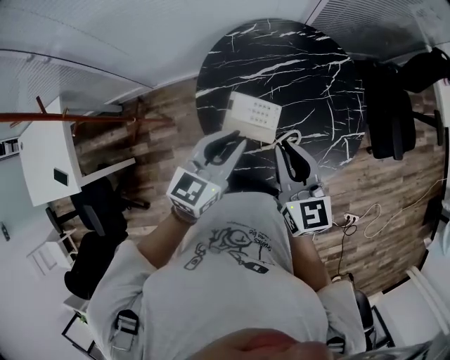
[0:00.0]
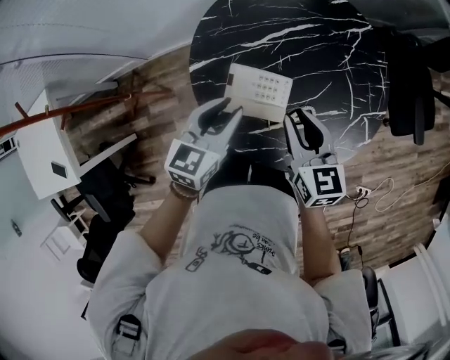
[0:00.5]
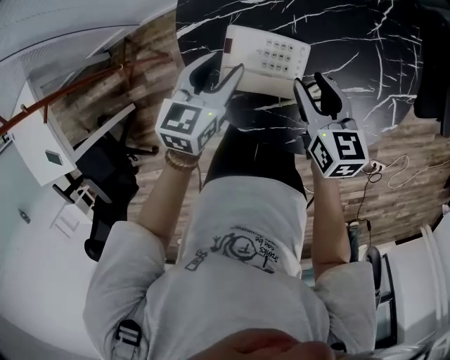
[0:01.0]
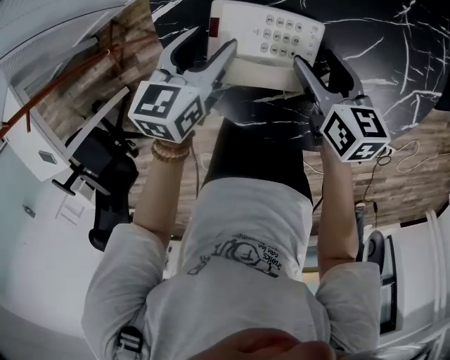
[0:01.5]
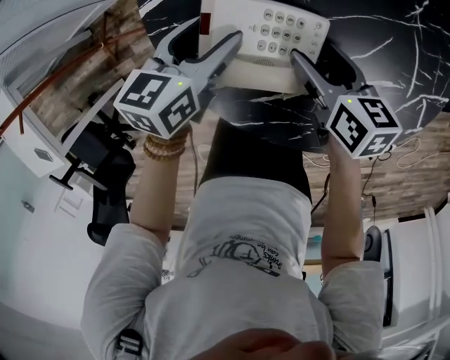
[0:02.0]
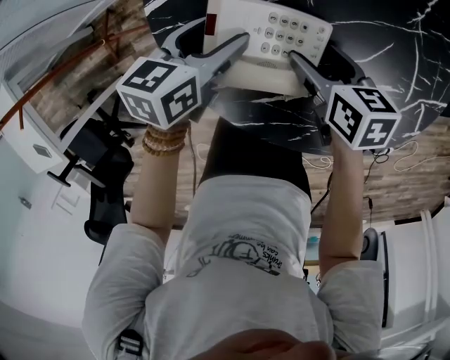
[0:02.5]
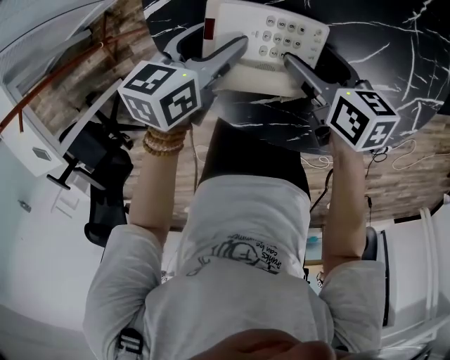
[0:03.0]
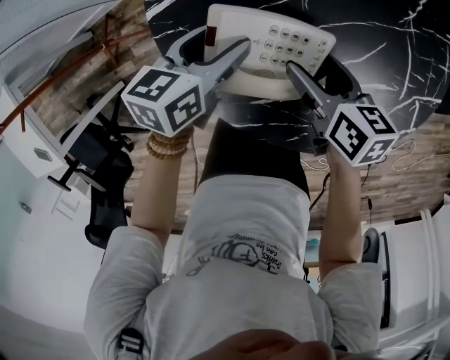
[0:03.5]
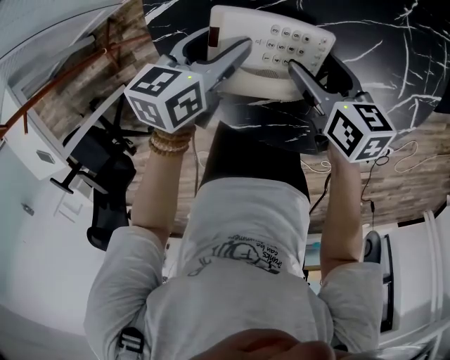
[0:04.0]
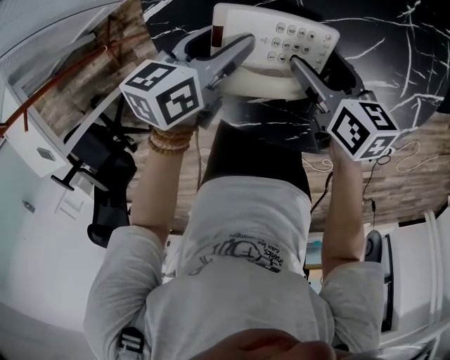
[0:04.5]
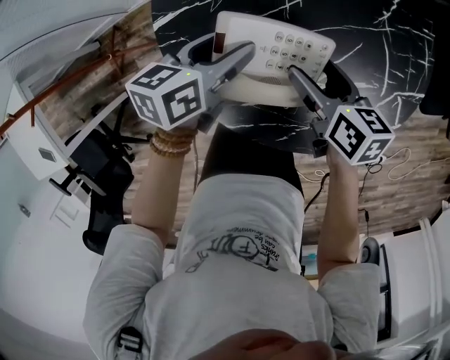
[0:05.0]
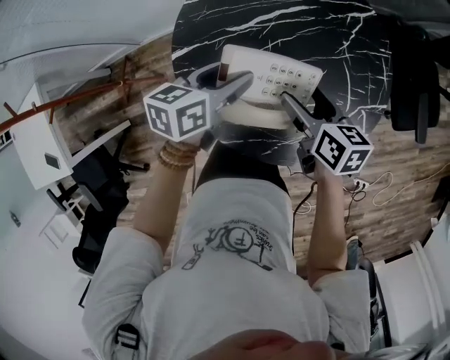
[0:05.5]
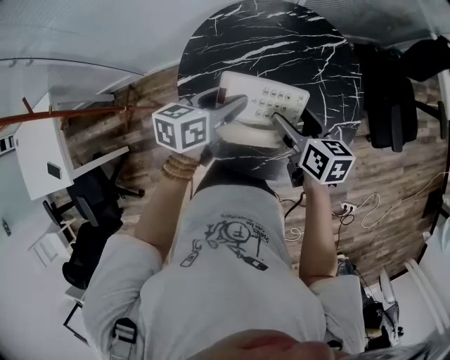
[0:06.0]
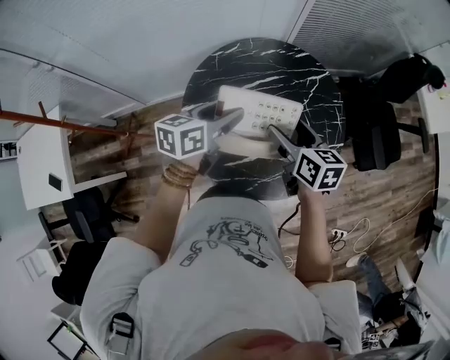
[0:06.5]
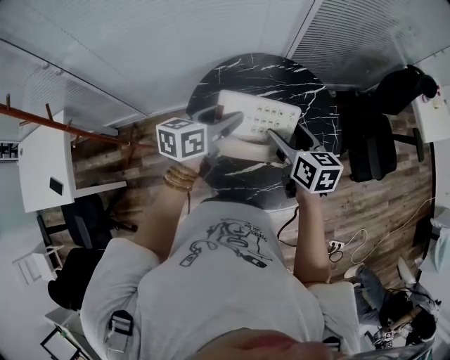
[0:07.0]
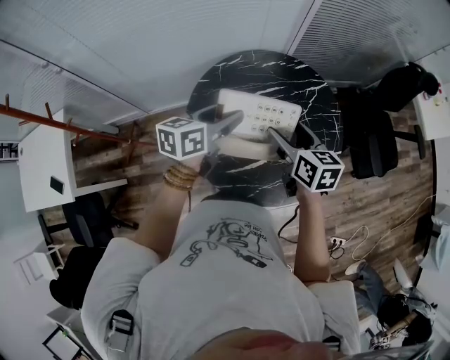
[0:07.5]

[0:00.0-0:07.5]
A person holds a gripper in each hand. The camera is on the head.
0:00.0 to 0:02.0: The two grippers go about 35 cm downward. The left gripper changes its angle by some 30 degrees, and opens up. The right gripper rotates approximately 40 degrees, and opens up.
0:02.0 to 0:04.0: The grippers move only a little.
0:04.0 to 0:05.5: The two grippers go about 20 cm upward.
0:05.5 to 0:07.5: The grippers both shift upward by approximately 20 cm.

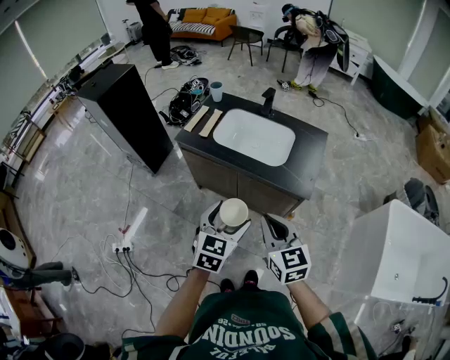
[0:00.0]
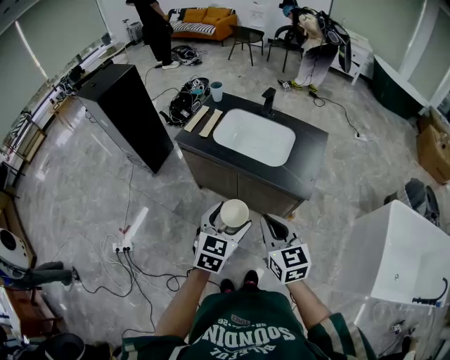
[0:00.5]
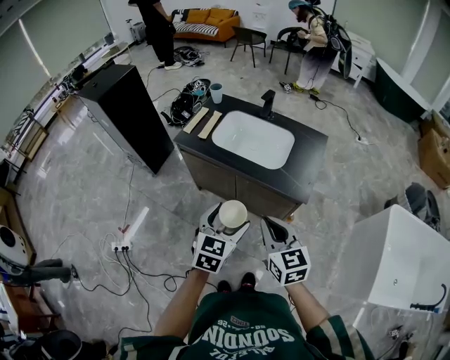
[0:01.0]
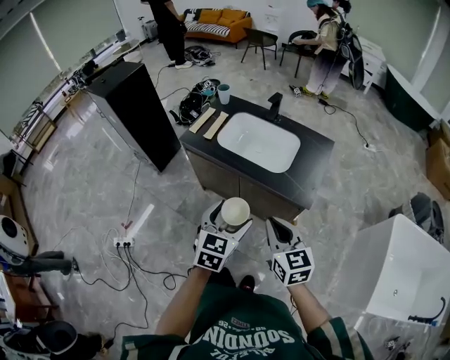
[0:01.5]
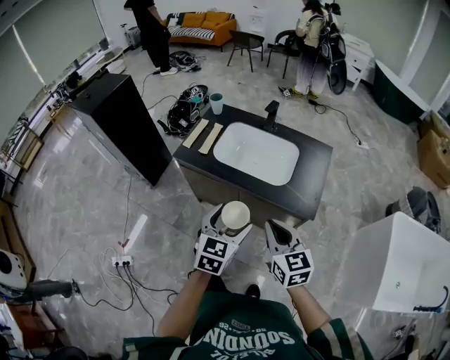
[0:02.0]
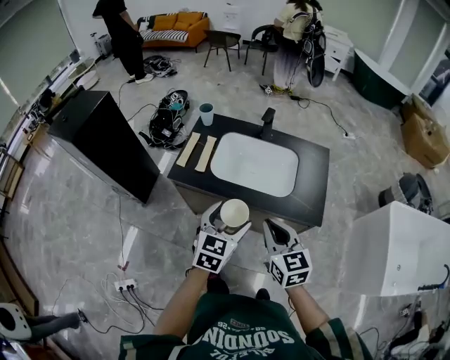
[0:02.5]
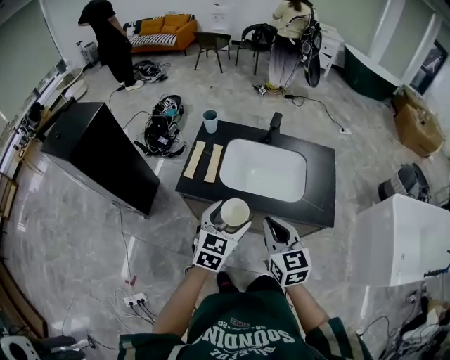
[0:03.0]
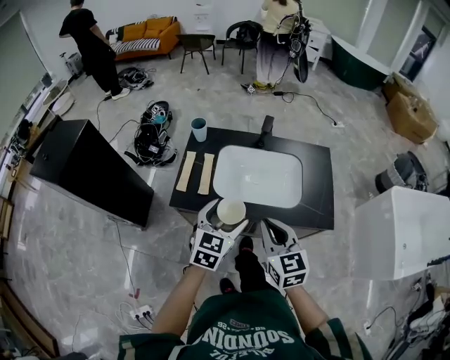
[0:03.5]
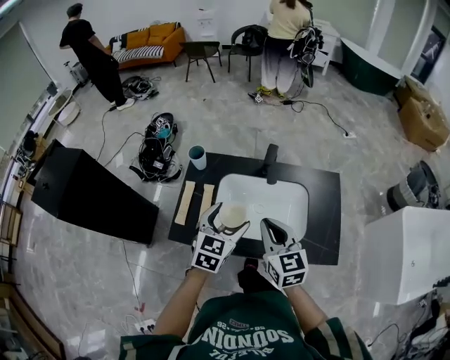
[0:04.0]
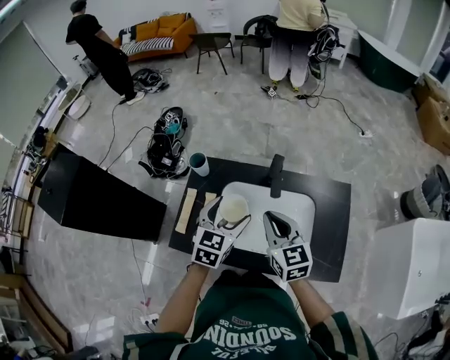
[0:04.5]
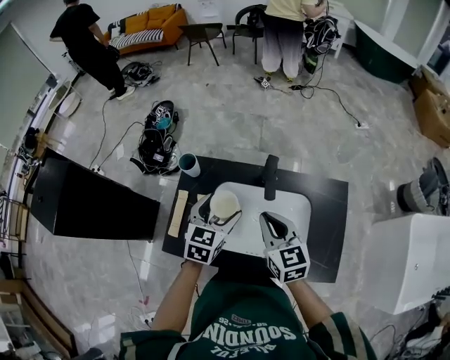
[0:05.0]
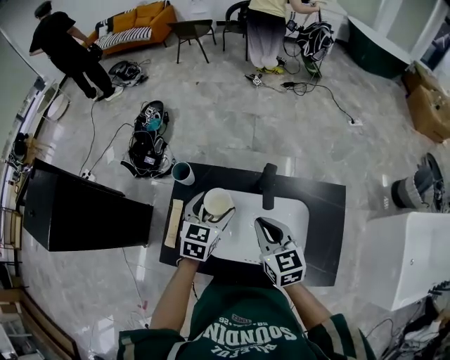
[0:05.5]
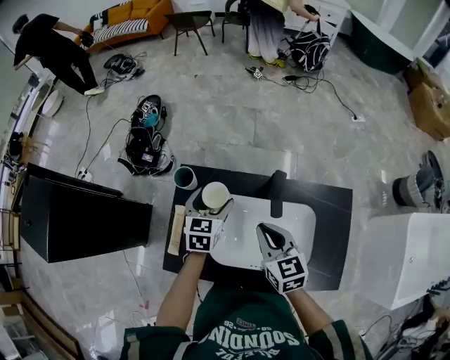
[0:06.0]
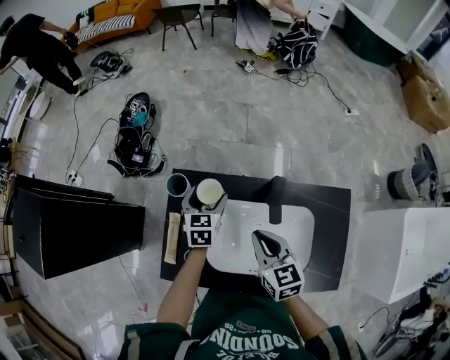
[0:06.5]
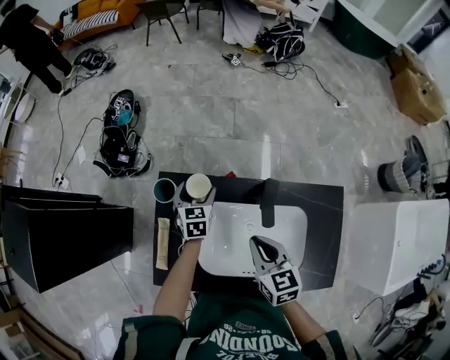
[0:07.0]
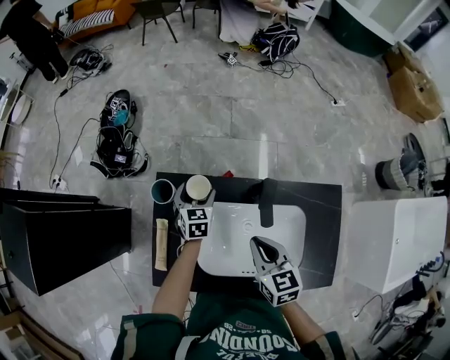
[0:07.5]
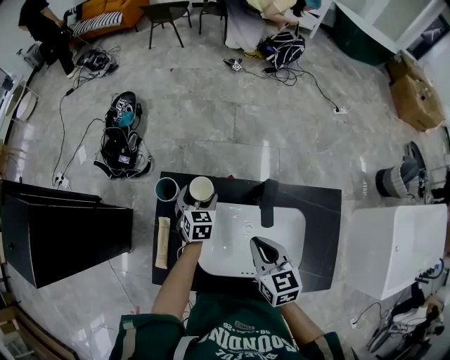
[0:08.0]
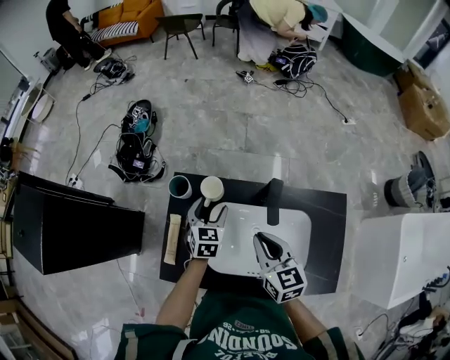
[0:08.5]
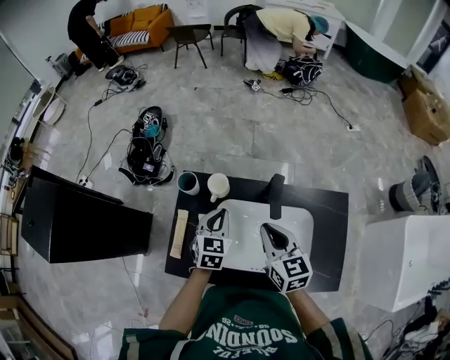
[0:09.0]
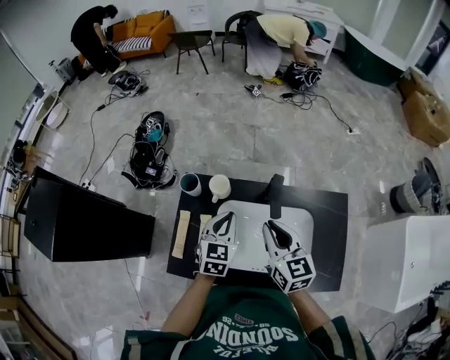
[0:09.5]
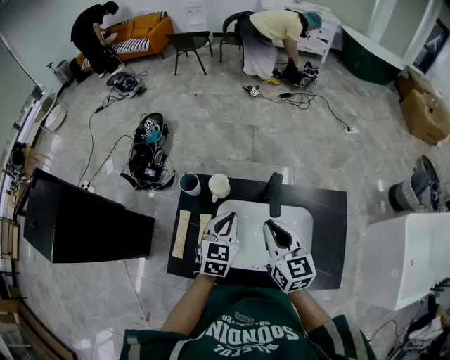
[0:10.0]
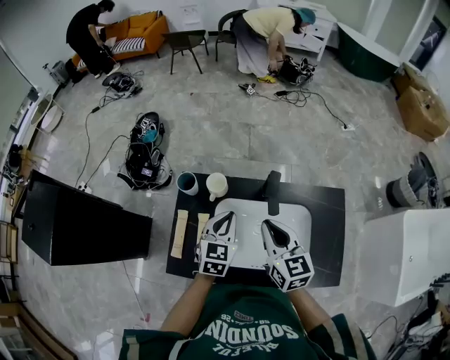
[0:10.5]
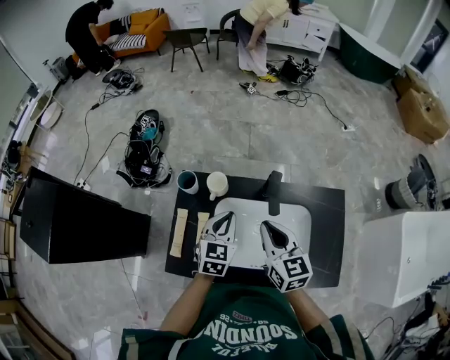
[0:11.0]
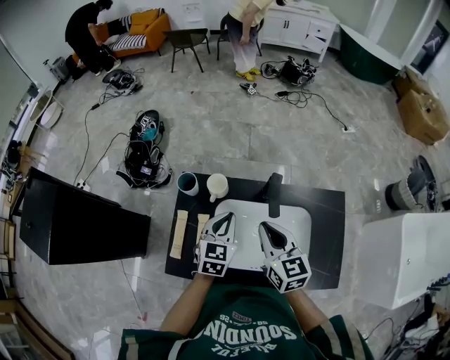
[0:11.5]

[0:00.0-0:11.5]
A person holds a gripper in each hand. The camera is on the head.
0:00.0 to 0:02.0: Both grippers travel together forward, about 10 cm.
0:02.0 to 0:04.0: The left gripper shifts some 35 cm forward. The right gripper moves forward and to the left, about 40 cm.
0:04.0 to 0:06.0: Both grippers move forward, approximately 25 cm.
0:06.0 to 0:07.5: The left gripper shifts some 15 cm downward and forward.
0:07.5 to 0:09.5: The left gripper moves upward and backward, approximately 25 cm, and closes up. The right gripper shifts some 10 cm upward.
0:09.5 to 0:11.5: The grippers stay close to where they were, moving slightly.

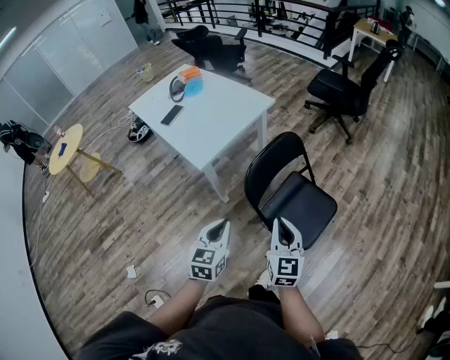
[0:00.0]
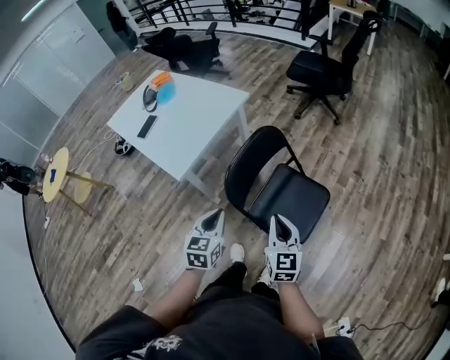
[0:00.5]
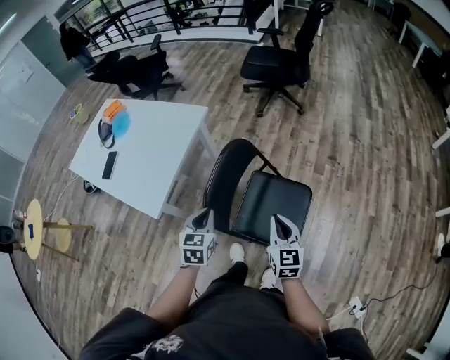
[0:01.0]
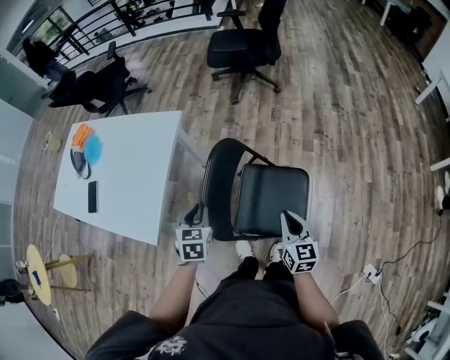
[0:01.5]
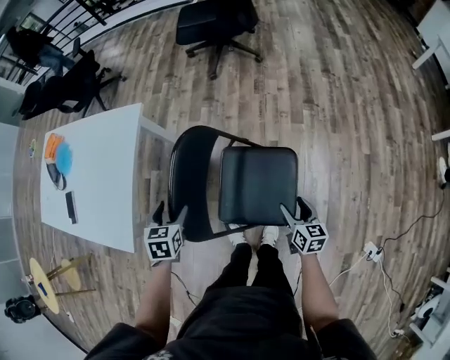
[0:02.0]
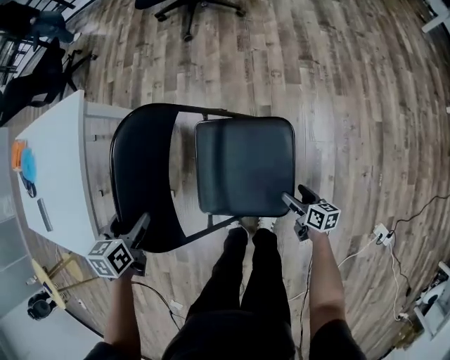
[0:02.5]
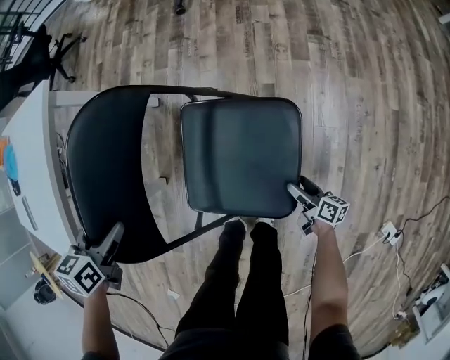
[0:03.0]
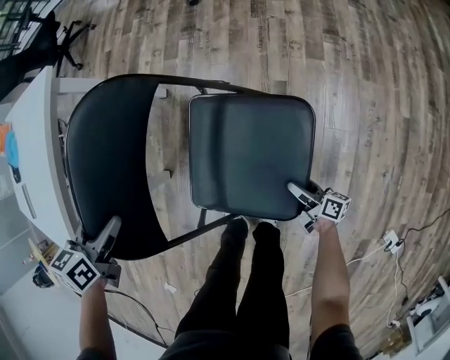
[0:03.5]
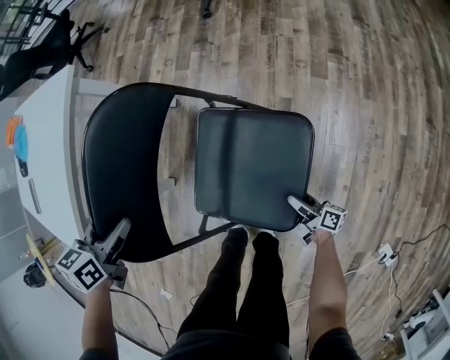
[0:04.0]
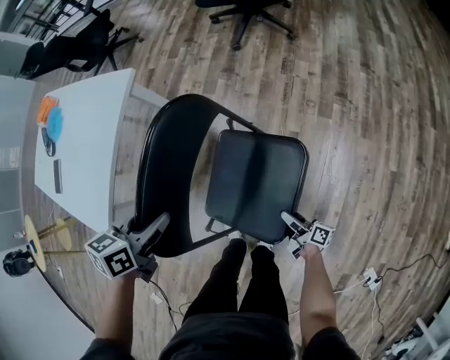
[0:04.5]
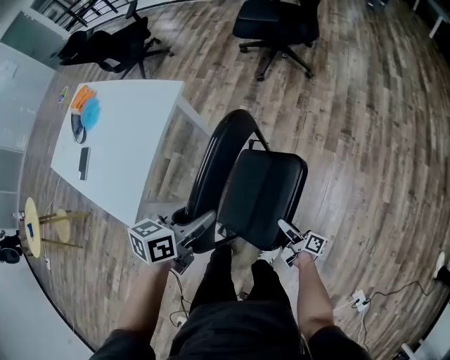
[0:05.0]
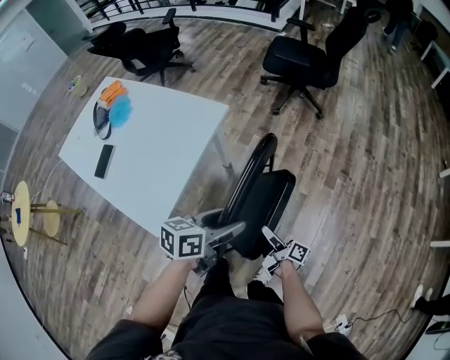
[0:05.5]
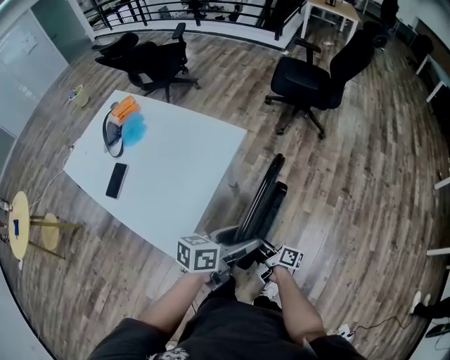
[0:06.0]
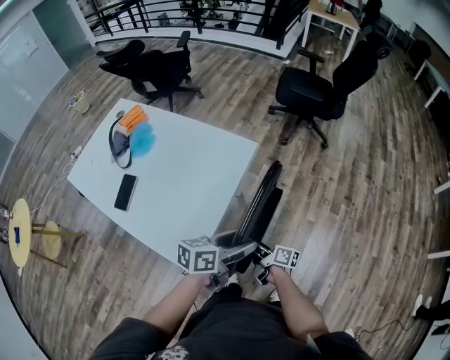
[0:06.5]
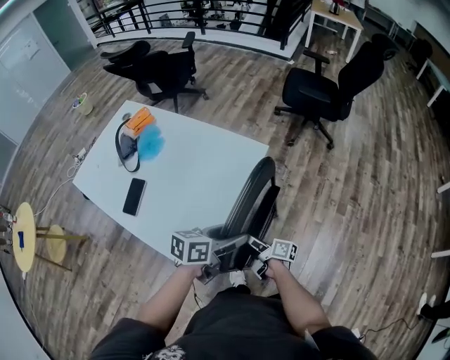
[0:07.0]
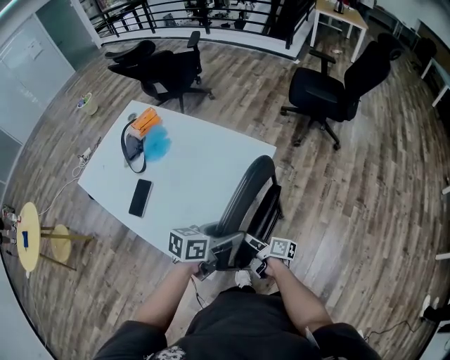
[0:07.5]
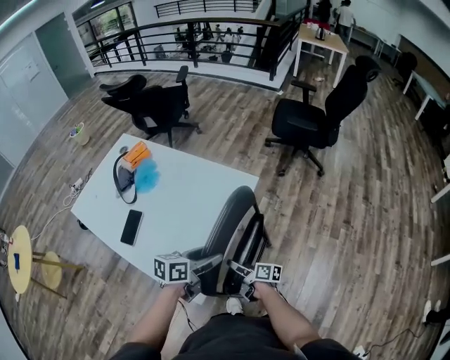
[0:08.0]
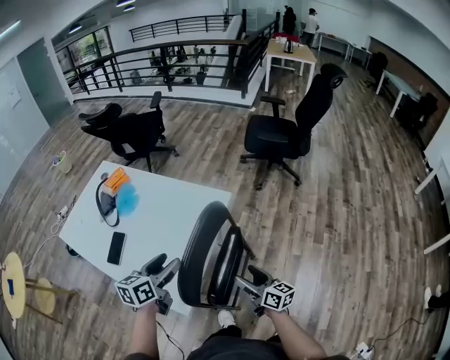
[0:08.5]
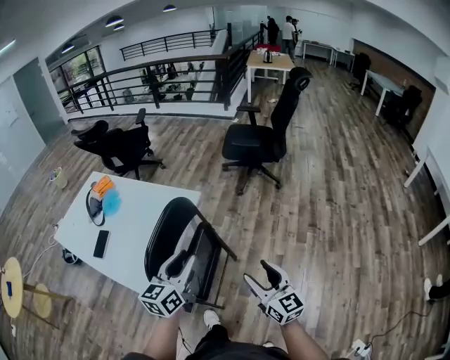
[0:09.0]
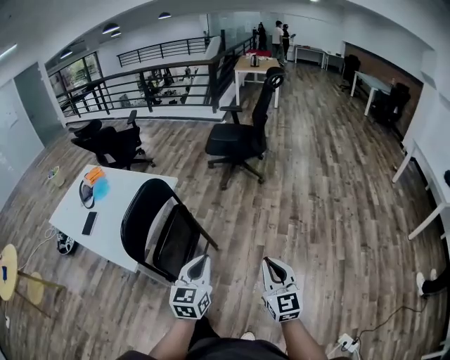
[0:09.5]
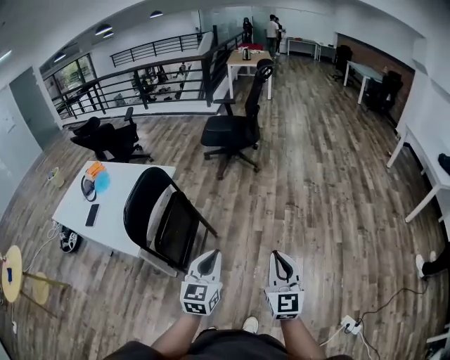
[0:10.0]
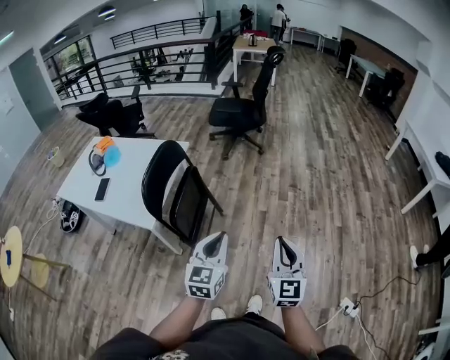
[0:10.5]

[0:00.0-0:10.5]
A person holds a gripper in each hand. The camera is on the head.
0:00.0 to 0:02.0: The left gripper is displaced forward and downward by about 40 cm, turns by about 40 degrees, and opens its fingers. Meanwhile the right gripper travels downward, to the right and forward by approximately 40 cm, rotates about 50 degrees, and opens its fingers.
0:02.0 to 0:04.0: The left gripper is displaced downward by some 10 cm; the right gripper travels downward by some 35 cm, and swivels roughly 50 degrees.
0:04.0 to 0:06.5: The left gripper heads upward and to the left, covering approximately 30 cm, and angles its fingers upward, by about 40 degrees. The right gripper goes roughly 60 cm to the left and upward.
0:06.5 to 0:08.5: The right gripper is displaced upward by approximately 10 cm, and turns by some 40 degrees, while the left gripper shifts some 20 cm to the left, and swivels roughly 30 degrees.
0:08.5 to 0:10.5: The pair of grippers is taken backward and to the right, some 50 cm. The left gripper turns by some 30 degrees, and closes its fingers, while the right gripper shifts approximately 20 cm upward, changes its angle by approximately 60 degrees, and closes its fingers.
